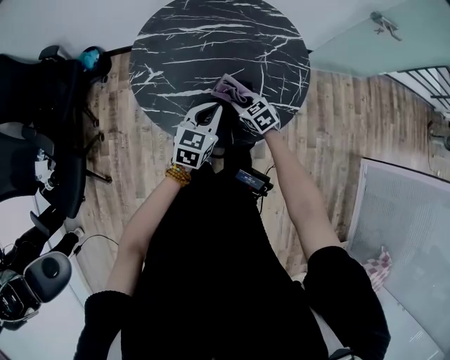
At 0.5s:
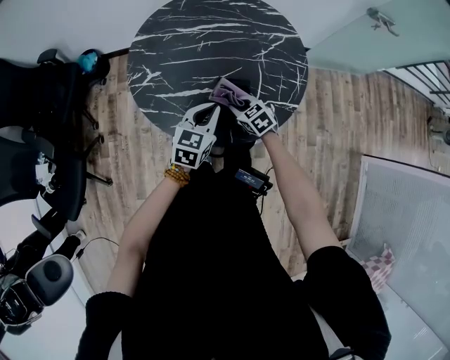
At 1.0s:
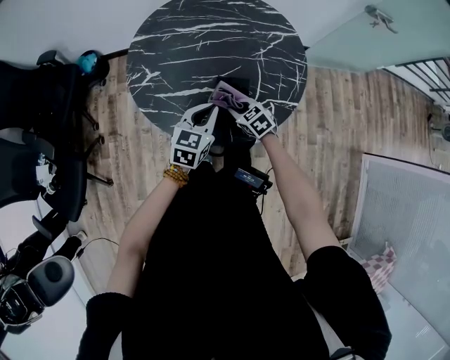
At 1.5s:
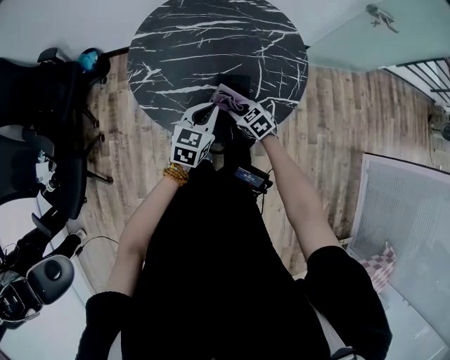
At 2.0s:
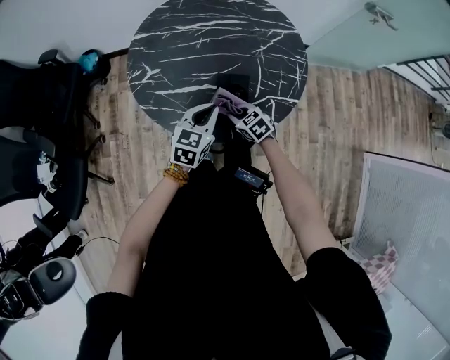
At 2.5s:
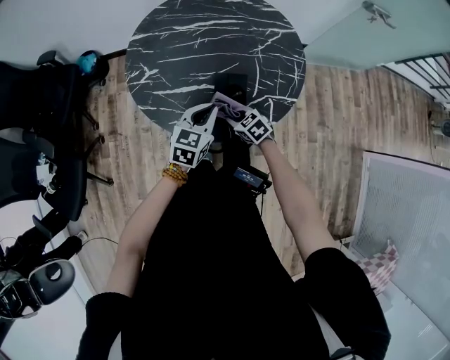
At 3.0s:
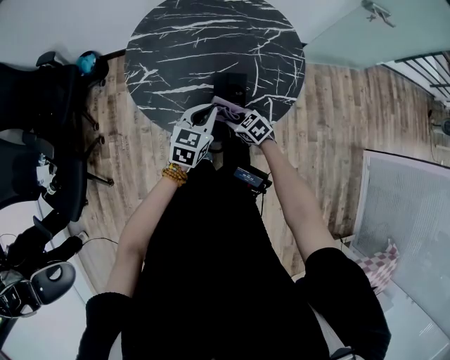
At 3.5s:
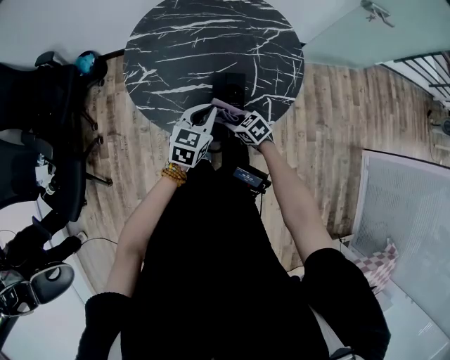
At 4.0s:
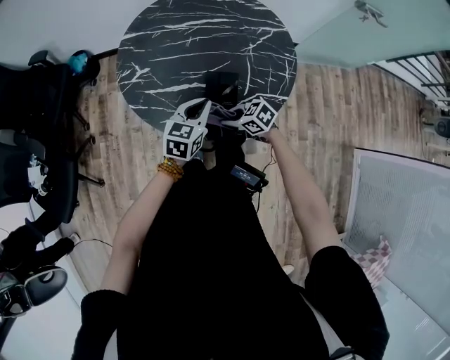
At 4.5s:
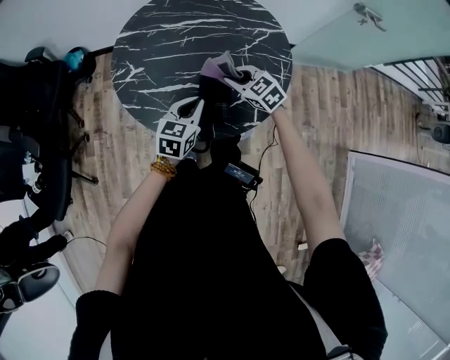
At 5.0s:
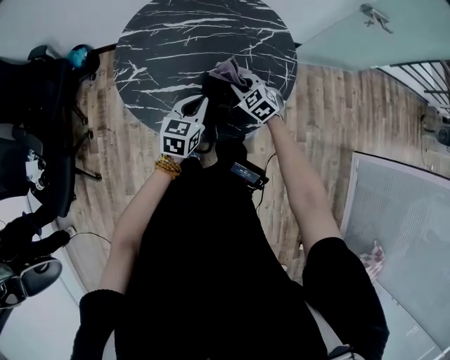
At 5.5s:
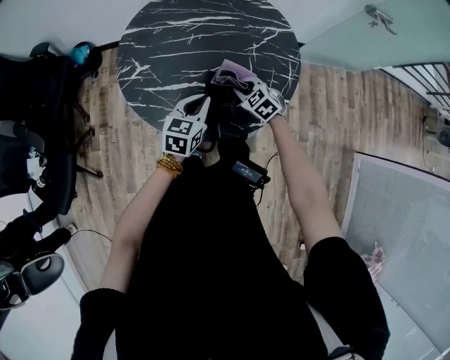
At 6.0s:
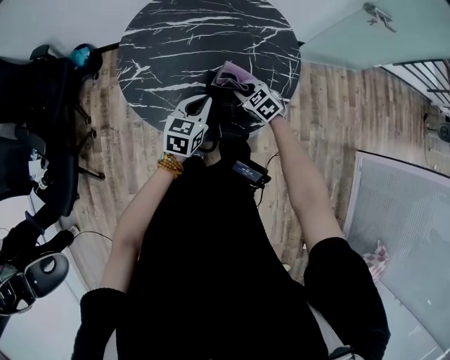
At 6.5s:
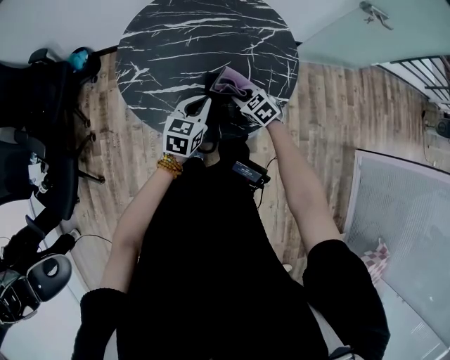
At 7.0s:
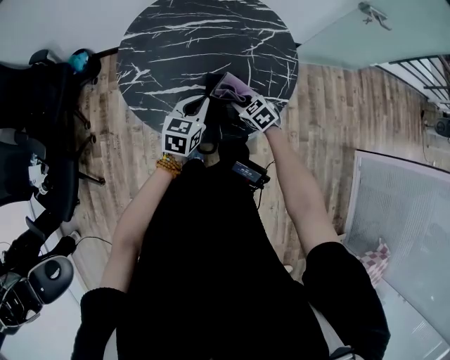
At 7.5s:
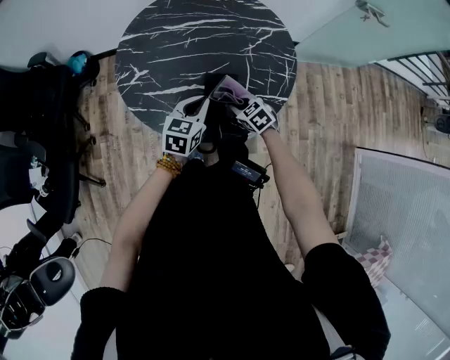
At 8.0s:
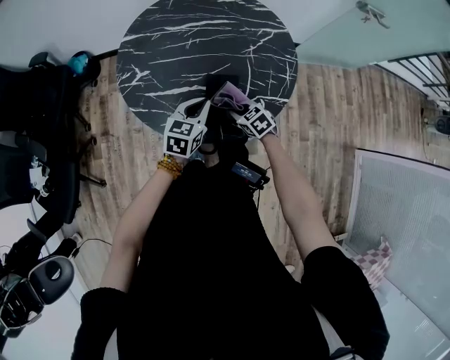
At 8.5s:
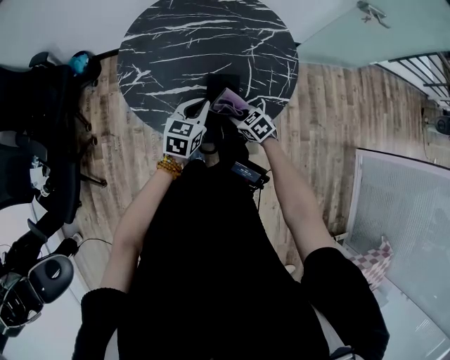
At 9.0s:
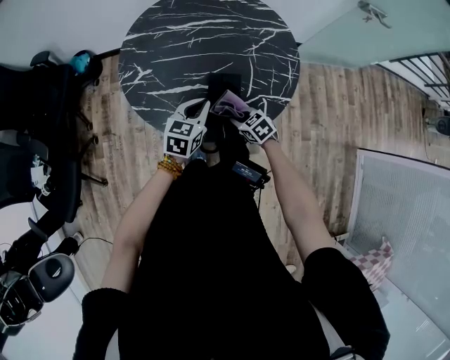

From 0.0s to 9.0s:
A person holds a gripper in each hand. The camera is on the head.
From 0.0s to 2.0s: The right gripper shifts some 5 cm backward.
From 2.0s to 4.5s: The right gripper shifts about 15 cm upward, forward and to the right.
From 4.5s to 7.0s: The right gripper is displaced downward and backward by about 10 cm.
From 7.0s to 9.0s: The right gripper shifts approximately 5 cm backward.

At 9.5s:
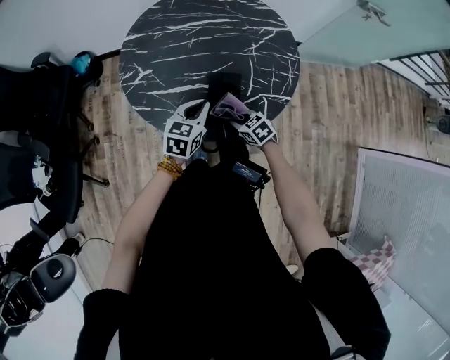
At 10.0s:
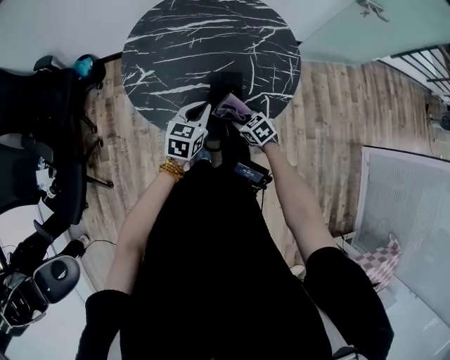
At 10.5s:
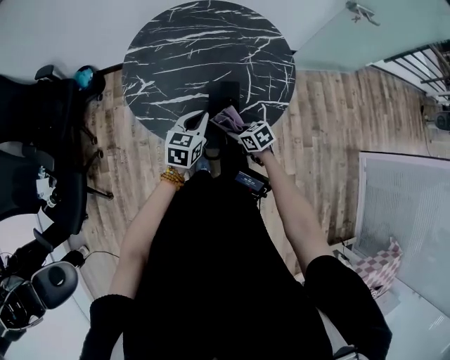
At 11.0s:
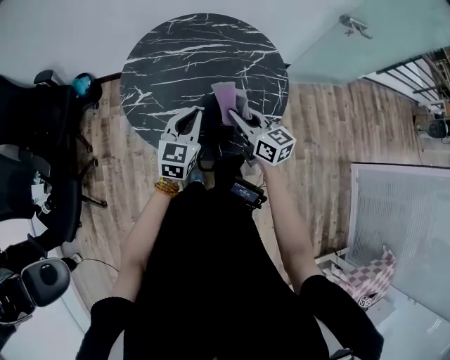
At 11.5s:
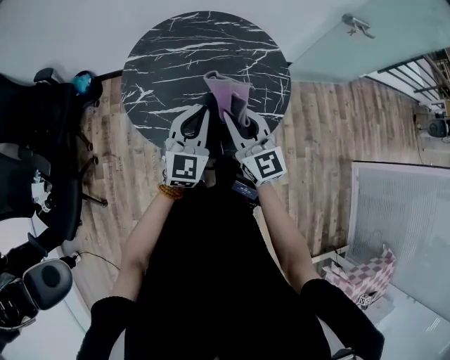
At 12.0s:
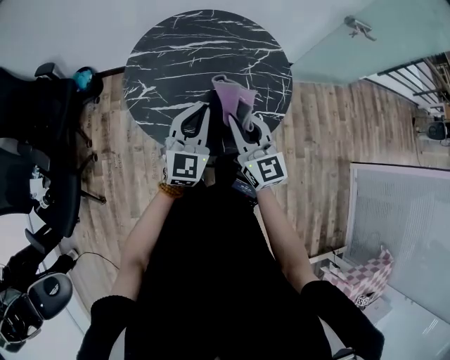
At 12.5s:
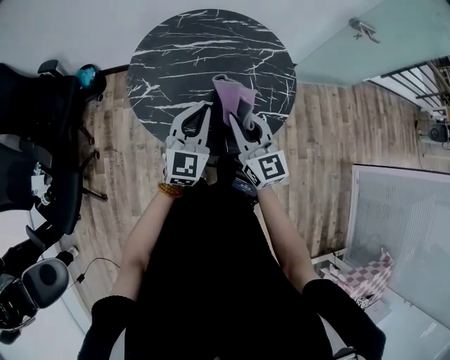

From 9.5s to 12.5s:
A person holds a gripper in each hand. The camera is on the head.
From 9.5s to 11.0s: The right gripper is displaced upward by roughly 25 cm, and points its fingers some 40 degrees further upward. The left gripper heads upward, covering some 10 cm.
From 11.0s to 12.5s: The two grippers go about 5 cm upward. The right gripper rotates some 30 degrees.

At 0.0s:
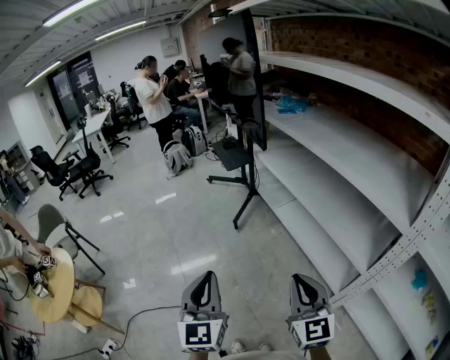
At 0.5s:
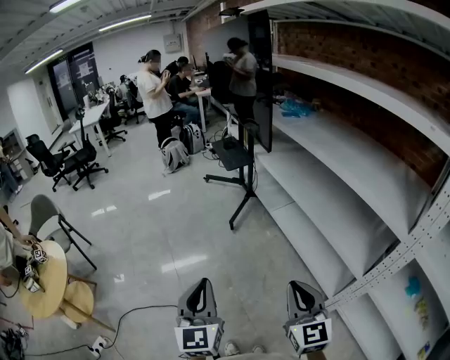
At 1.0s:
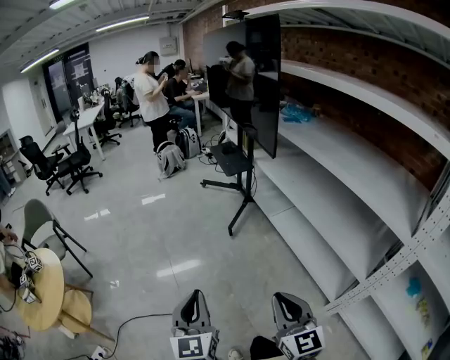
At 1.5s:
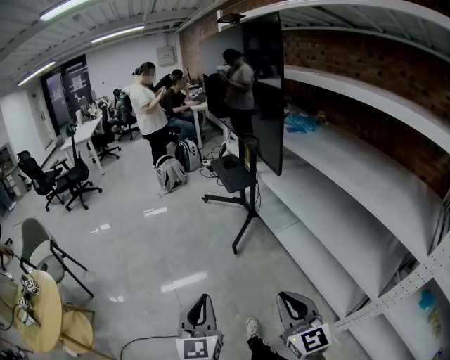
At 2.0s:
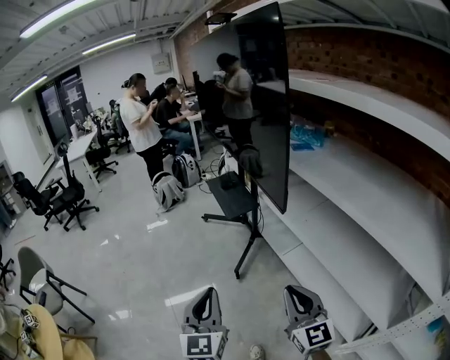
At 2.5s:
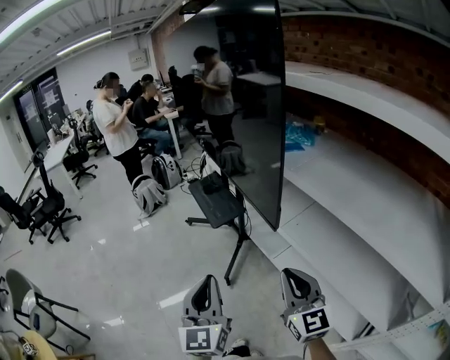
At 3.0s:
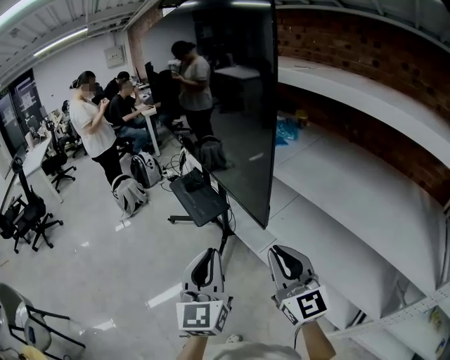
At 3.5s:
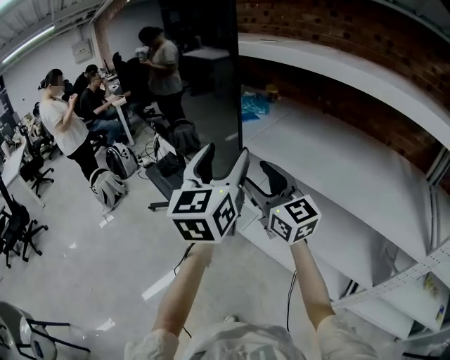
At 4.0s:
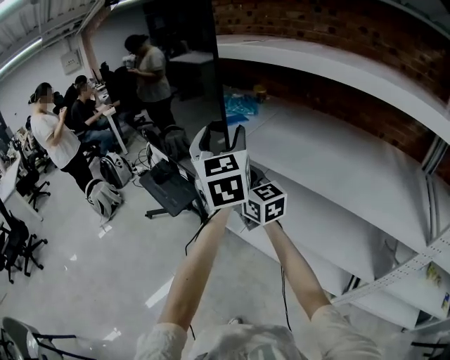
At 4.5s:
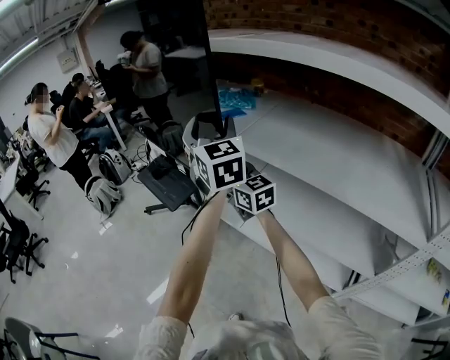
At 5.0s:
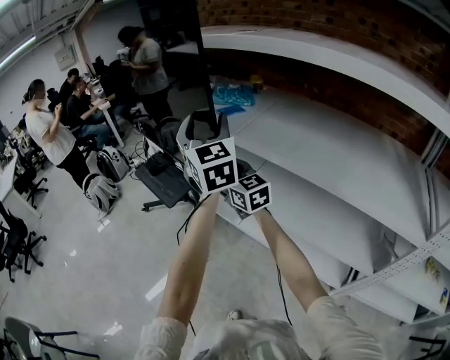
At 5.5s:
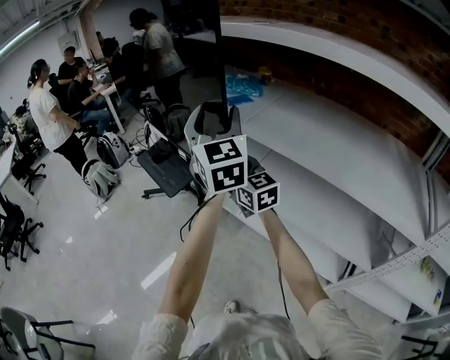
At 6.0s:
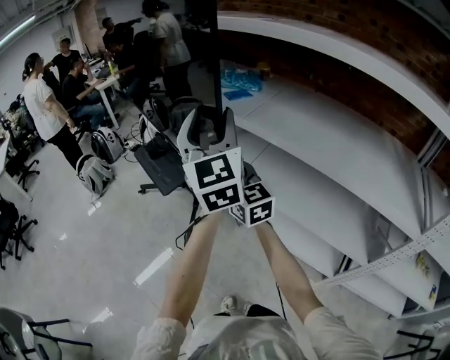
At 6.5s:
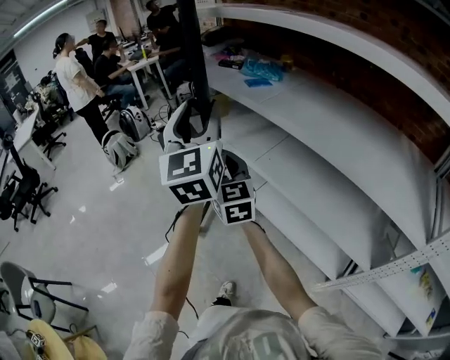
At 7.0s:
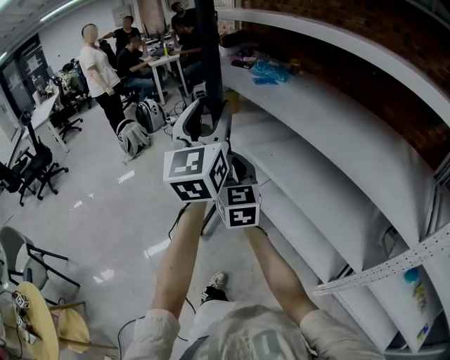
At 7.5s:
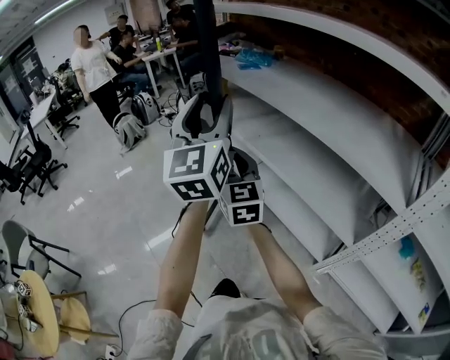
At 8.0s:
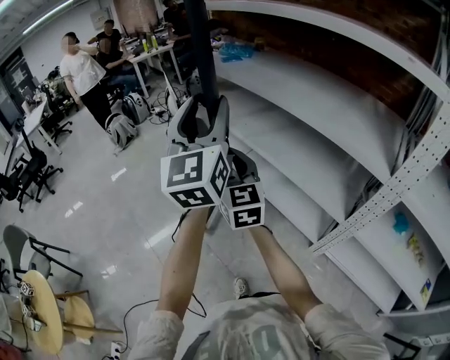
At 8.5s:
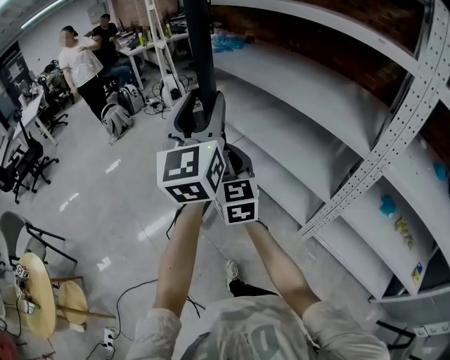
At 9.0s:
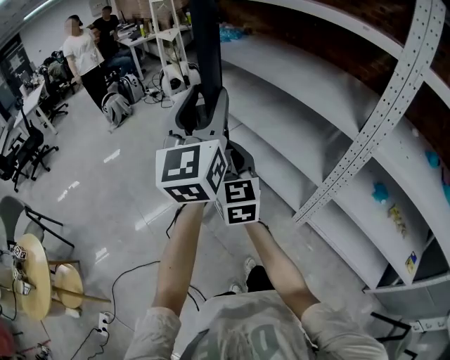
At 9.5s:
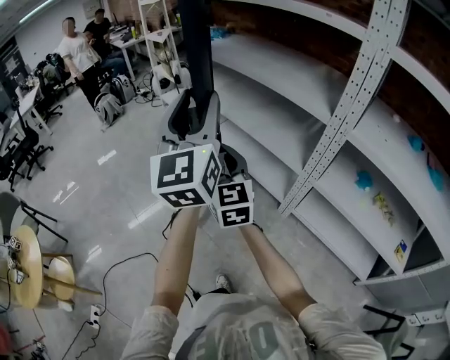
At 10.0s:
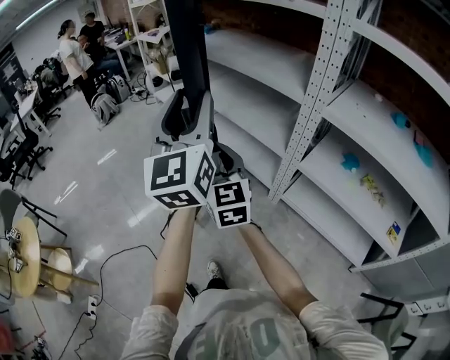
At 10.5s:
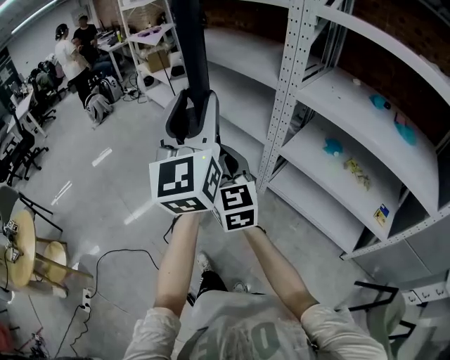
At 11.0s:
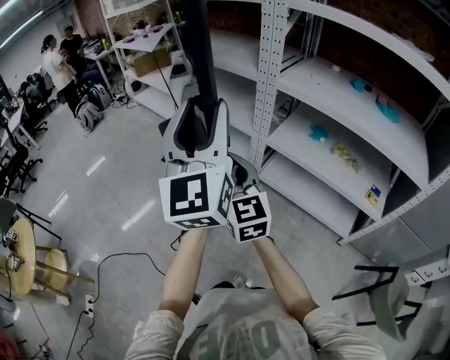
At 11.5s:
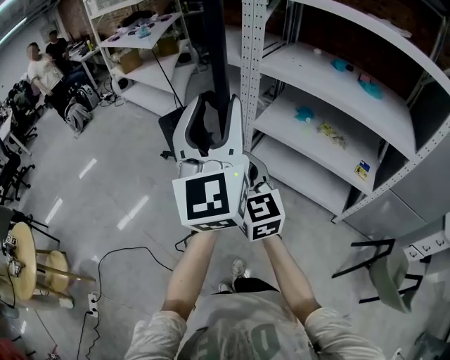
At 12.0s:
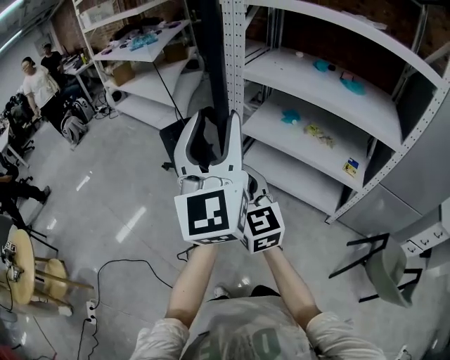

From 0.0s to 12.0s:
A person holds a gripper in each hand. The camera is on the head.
From 0.0s to 2.0s: The grippers both shift forward by some 35 cm.
From 2.0s to 4.0s: The right gripper is displaced forward by about 35 cm, and opens its fingers; the left gripper shifts some 50 cm forward, to the right and upward, rotates approximately 20 degrees, and opens up.
From 4.0s to 6.0s: The two grippers go approximately 10 cm to the left.
From 6.0s to 8.0s: Both grippers are carried backward, approximately 40 cm.
From 8.0s to 10.0s: The pair of grippers is taken backward, about 40 cm.
From 10.0s to 12.0s: Both grippers travel together backward and to the right, roughly 40 cm.

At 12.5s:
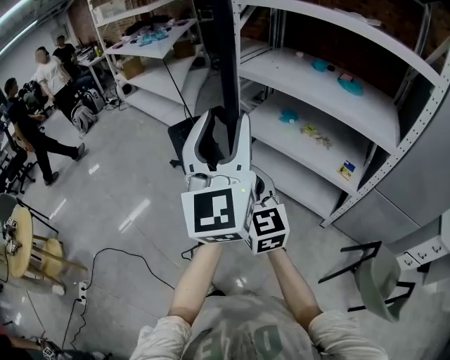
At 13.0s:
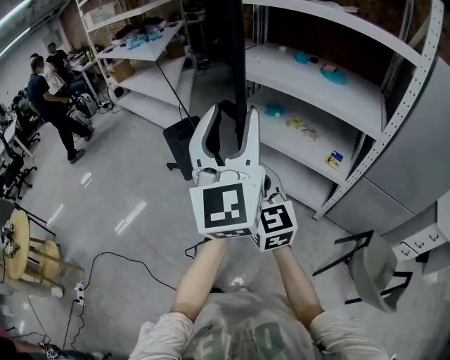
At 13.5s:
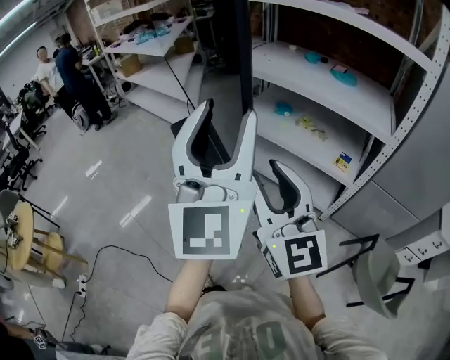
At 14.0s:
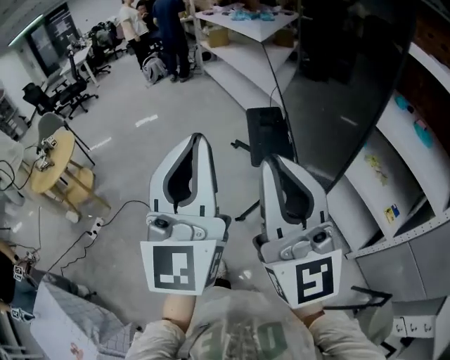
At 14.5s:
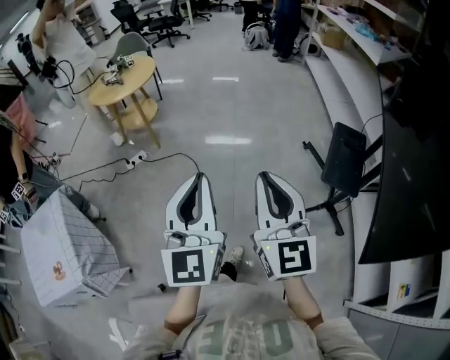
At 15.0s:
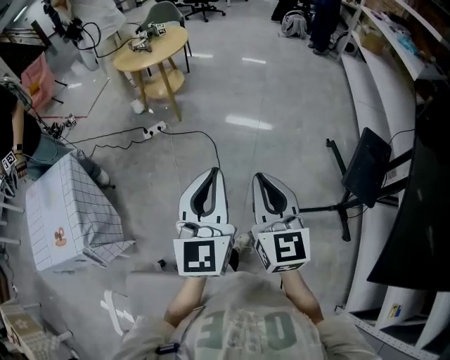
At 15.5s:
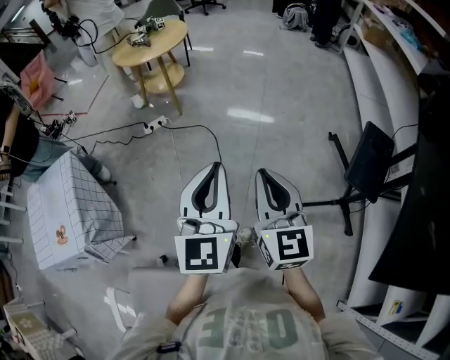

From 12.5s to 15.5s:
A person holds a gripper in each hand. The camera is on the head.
From 12.5s to 14.0s: The left gripper shifts by about 20 cm, changes its angle by some 20 degrees, and closes its fingers, while the right gripper heads upward, covering roughly 15 cm, rotates roughly 30 degrees, and closes its fingers.
From 14.0s to 15.5s: The left gripper changes place by approximately 35 cm, and changes its angle by some 50 degrees; the right gripper moves approximately 40 cm, and turns by approximately 50 degrees.
